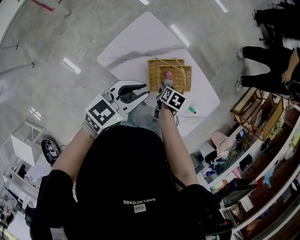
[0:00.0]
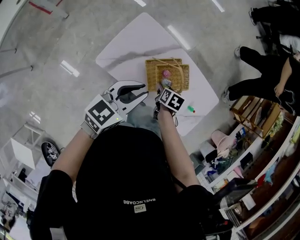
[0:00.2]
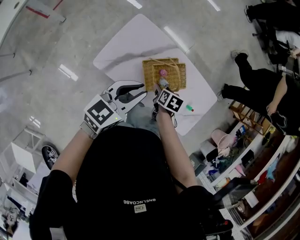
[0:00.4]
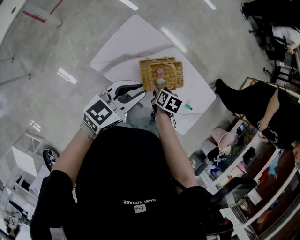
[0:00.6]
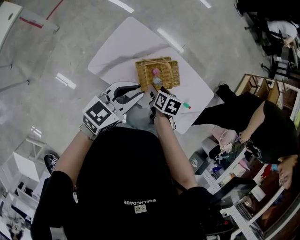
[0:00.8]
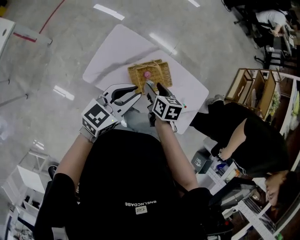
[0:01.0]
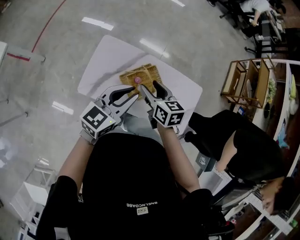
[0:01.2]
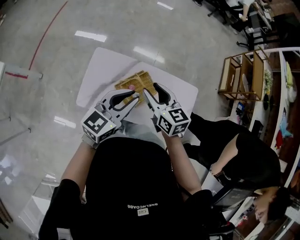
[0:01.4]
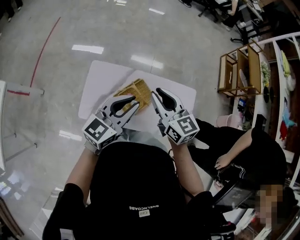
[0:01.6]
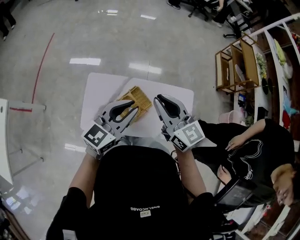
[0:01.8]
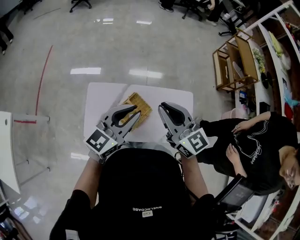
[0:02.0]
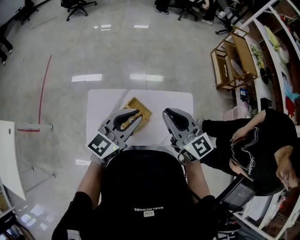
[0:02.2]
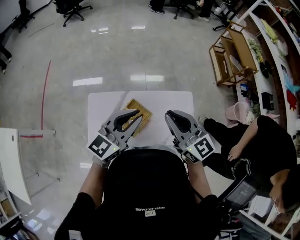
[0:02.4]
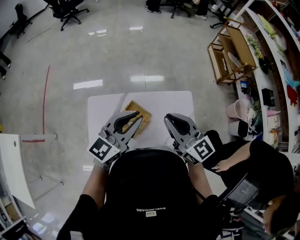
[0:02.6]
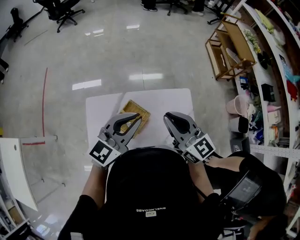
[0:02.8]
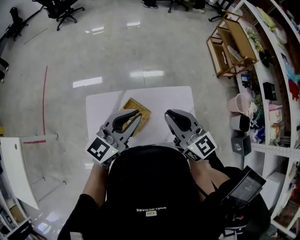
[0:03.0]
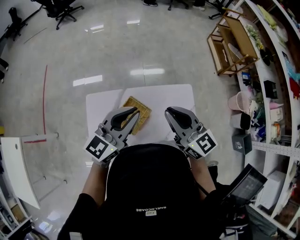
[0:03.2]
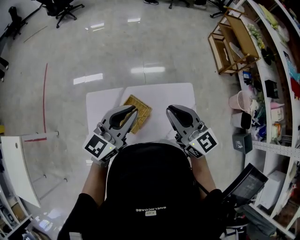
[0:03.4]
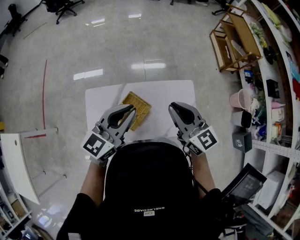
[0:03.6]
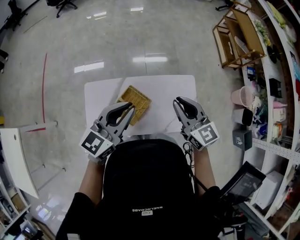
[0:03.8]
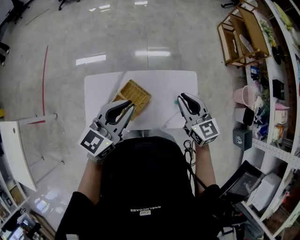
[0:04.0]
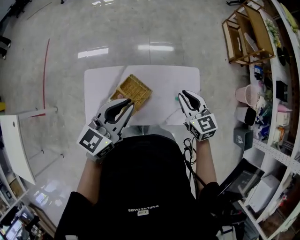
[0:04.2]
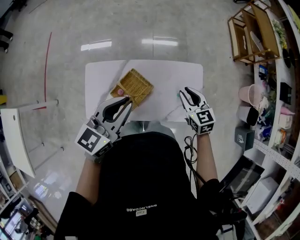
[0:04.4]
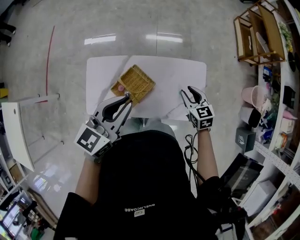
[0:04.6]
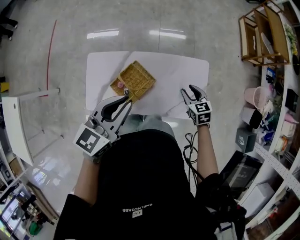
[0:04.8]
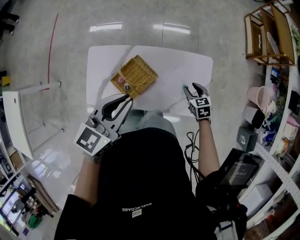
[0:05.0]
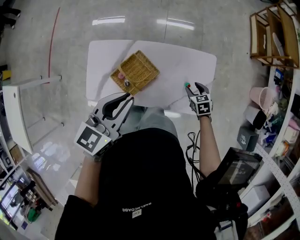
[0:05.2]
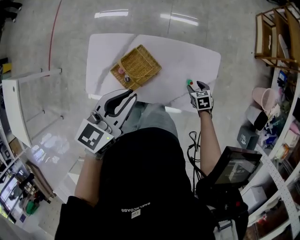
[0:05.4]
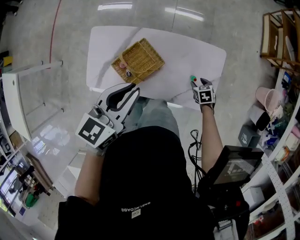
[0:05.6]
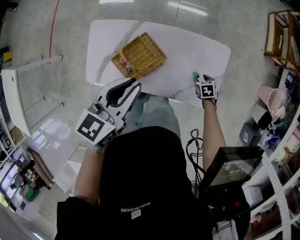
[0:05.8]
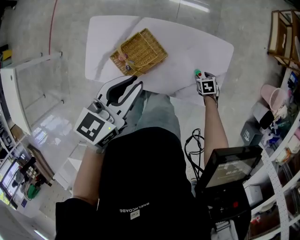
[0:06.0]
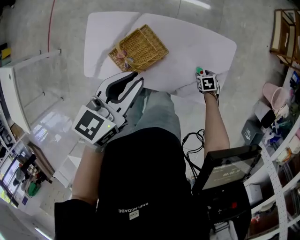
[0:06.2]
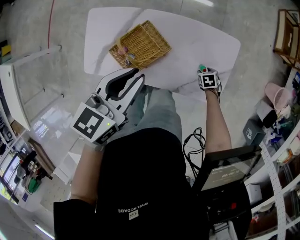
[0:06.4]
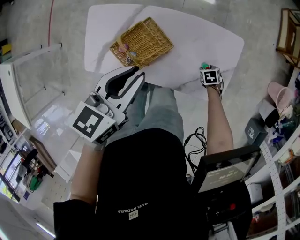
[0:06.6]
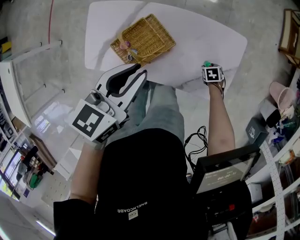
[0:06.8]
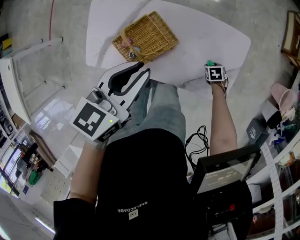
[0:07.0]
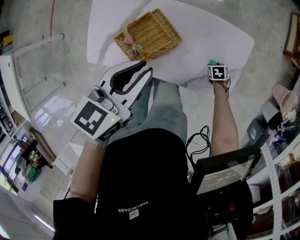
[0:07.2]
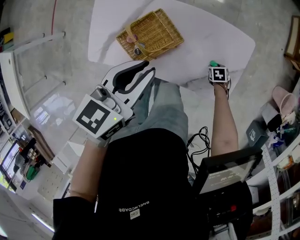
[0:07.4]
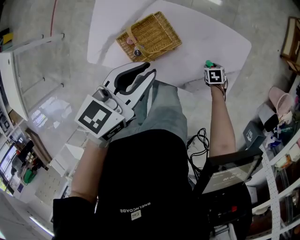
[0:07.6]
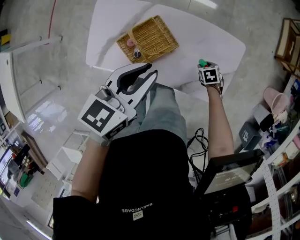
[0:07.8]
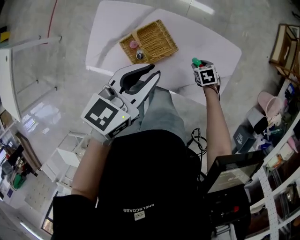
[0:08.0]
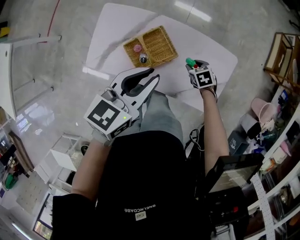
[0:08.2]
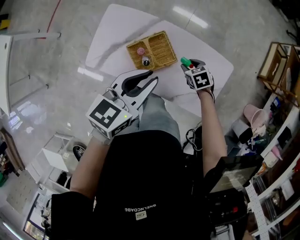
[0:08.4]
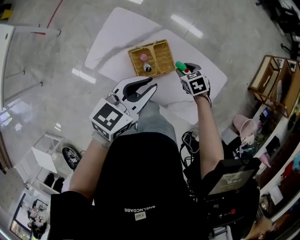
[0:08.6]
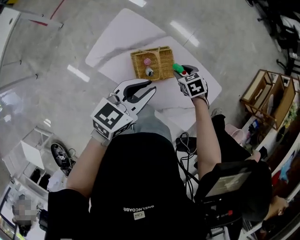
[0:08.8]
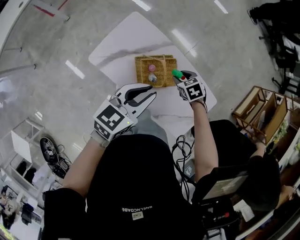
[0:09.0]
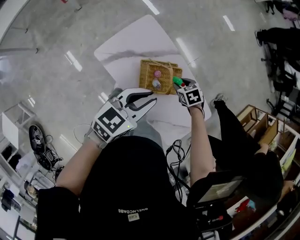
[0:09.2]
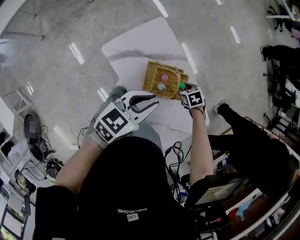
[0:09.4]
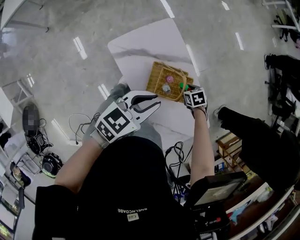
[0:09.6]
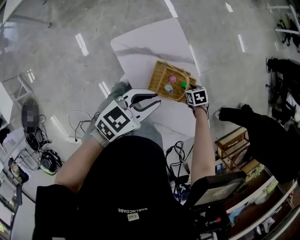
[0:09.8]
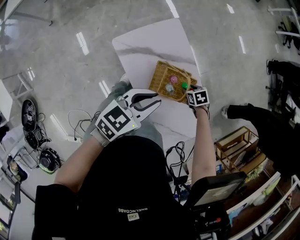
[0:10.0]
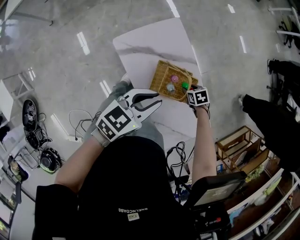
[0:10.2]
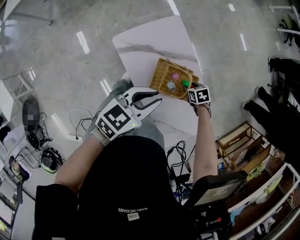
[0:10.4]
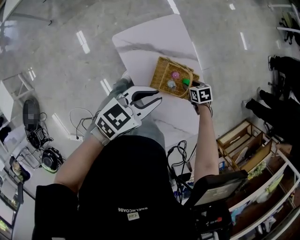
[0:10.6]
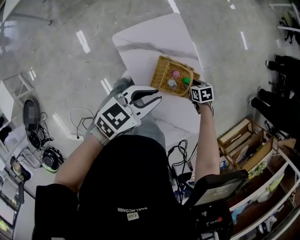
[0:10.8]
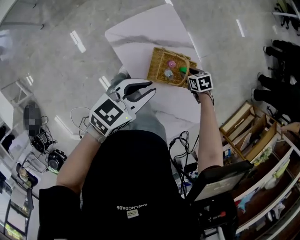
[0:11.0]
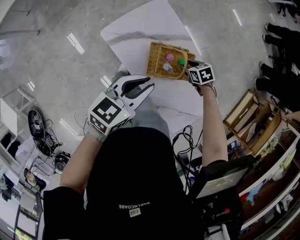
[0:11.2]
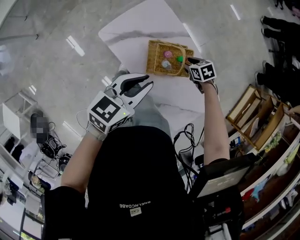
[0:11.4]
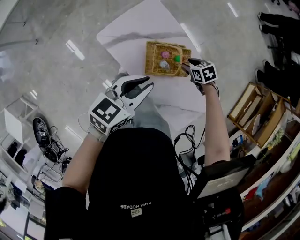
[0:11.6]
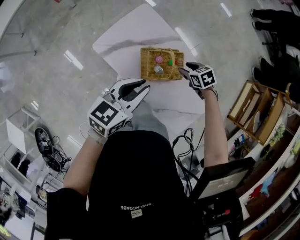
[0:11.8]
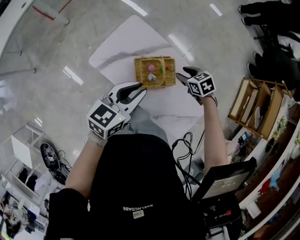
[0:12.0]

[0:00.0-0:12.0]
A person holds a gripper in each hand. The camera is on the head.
0:00.0 to 0:01.6: The left gripper travels upward and to the right by about 20 cm, and swivels approximately 20 degrees, while the right gripper moves upward, some 35 cm, angles its fingers upward, by some 60 degrees, and closes its fingers.
0:01.6 to 0:03.0: The grippers both shift to the right and upward by about 15 cm.
0:03.0 to 0:04.4: The left gripper moves downward, some 5 cm; the right gripper heads downward and to the right, covering roughly 25 cm, and angles its fingers downward, by approximately 30 degrees.
0:04.4 to 0:06.0: The left gripper travels downward by about 10 cm. The right gripper is displaced downward by approximately 40 cm, tips its fingers downward by some 40 degrees, and opens its fingers.
0:07.6 to 0:09.0: The right gripper shifts by roughly 40 cm, and rolls counterclockwise, seen from behind, by some 40 degrees; the left gripper changes place by about 15 cm.
0:09.0 to 0:10.4: The left gripper shifts by about 10 cm; the right gripper goes about 10 cm downward.
0:10.4 to 0:12.0: The right gripper heads upward, covering some 15 cm.

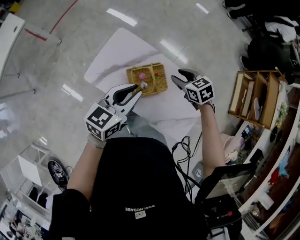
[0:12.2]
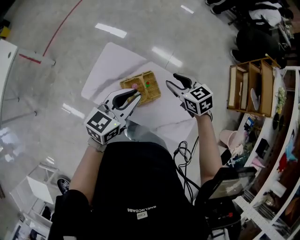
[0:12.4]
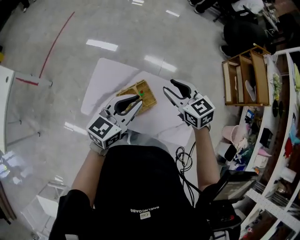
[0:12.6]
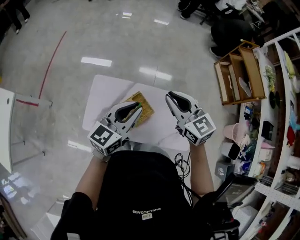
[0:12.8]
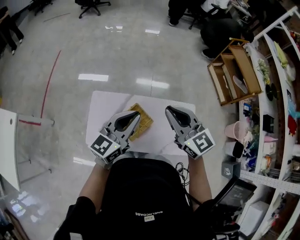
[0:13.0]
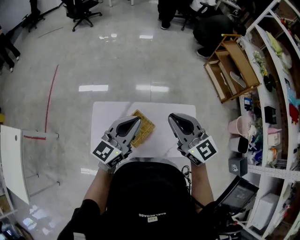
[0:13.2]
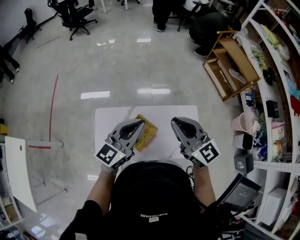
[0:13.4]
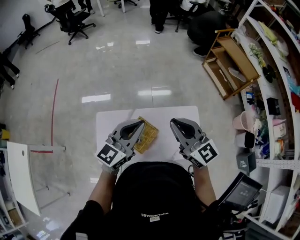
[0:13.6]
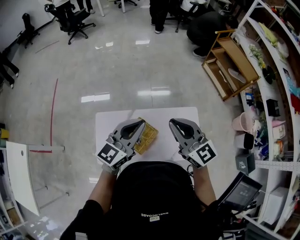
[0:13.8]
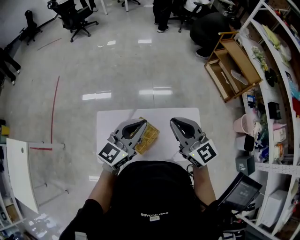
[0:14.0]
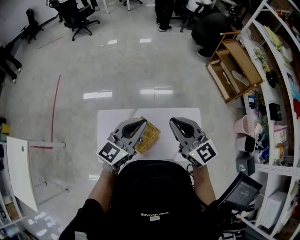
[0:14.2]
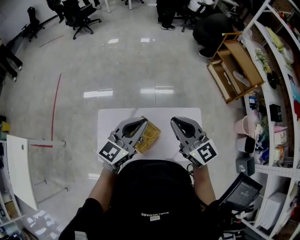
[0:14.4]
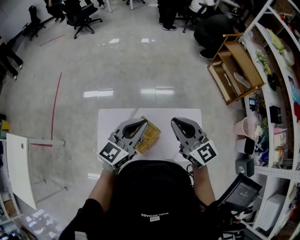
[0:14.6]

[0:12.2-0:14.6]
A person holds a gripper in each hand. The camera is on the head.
0:12.2 to 0:13.4: The right gripper moves upward, about 30 cm, points its fingers some 50 degrees further upward, and closes up, while the left gripper travels upward by approximately 15 cm, and rotates approximately 40 degrees.
0:13.4 to 0:14.6: The grippers stay close to where they were, moving slightly.

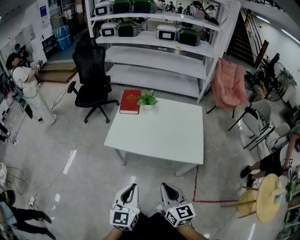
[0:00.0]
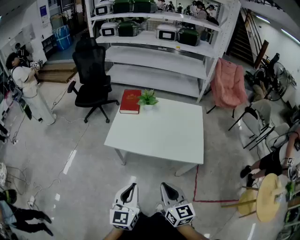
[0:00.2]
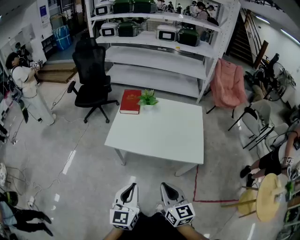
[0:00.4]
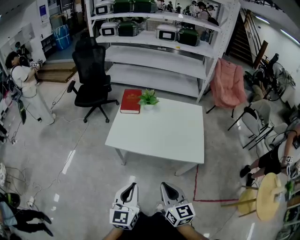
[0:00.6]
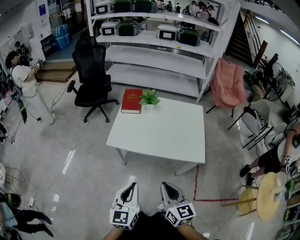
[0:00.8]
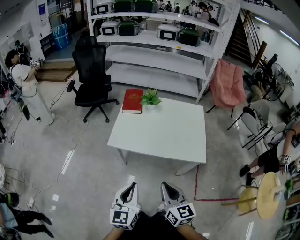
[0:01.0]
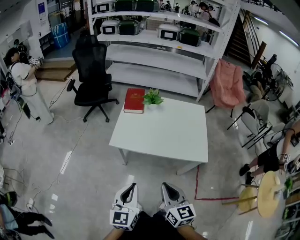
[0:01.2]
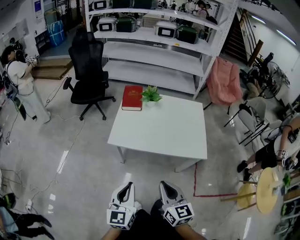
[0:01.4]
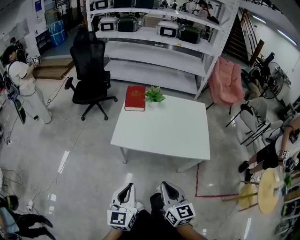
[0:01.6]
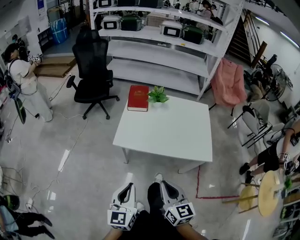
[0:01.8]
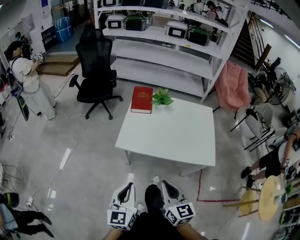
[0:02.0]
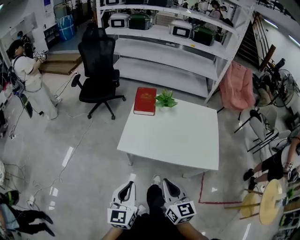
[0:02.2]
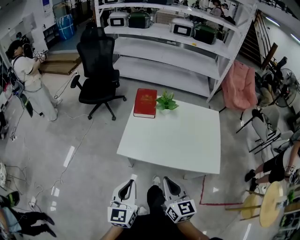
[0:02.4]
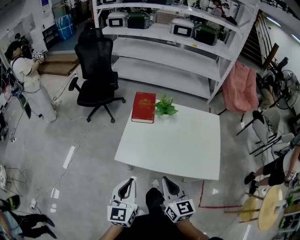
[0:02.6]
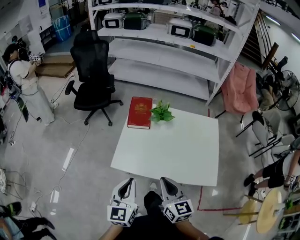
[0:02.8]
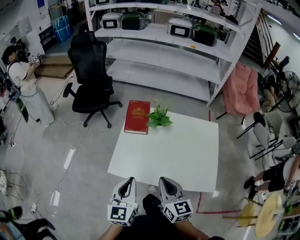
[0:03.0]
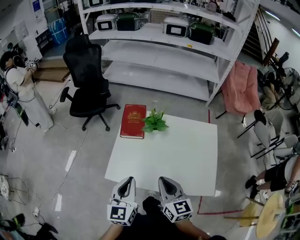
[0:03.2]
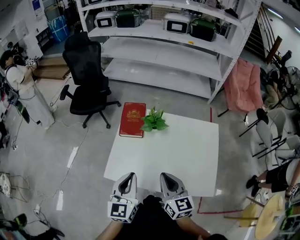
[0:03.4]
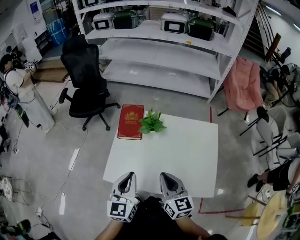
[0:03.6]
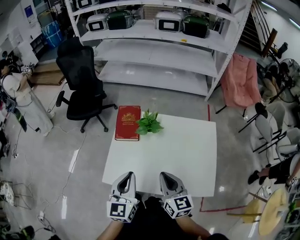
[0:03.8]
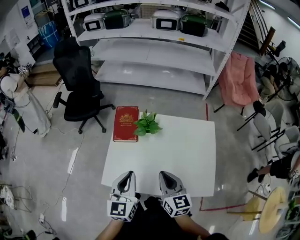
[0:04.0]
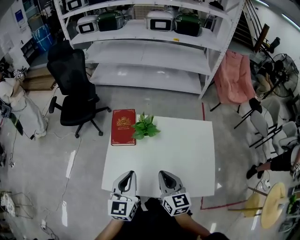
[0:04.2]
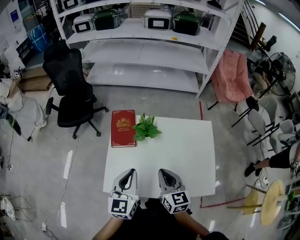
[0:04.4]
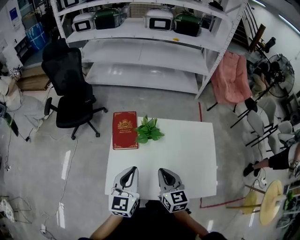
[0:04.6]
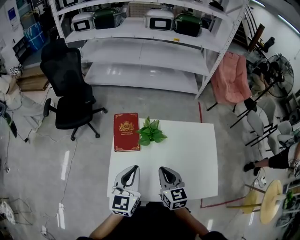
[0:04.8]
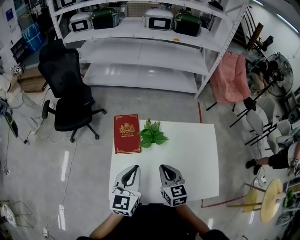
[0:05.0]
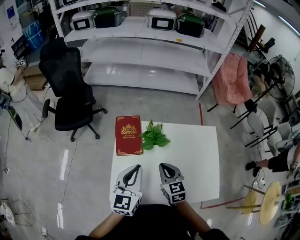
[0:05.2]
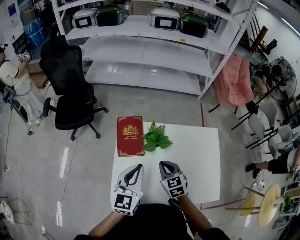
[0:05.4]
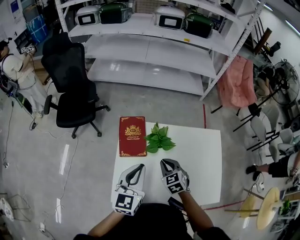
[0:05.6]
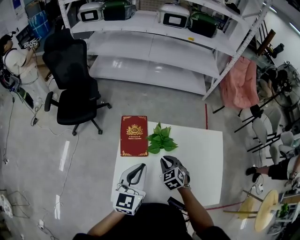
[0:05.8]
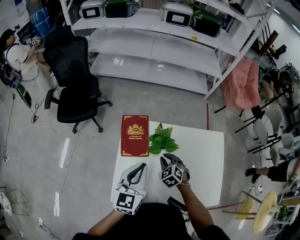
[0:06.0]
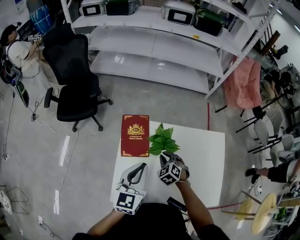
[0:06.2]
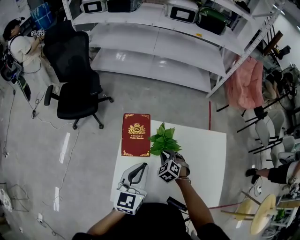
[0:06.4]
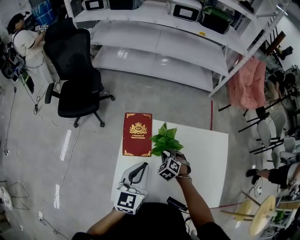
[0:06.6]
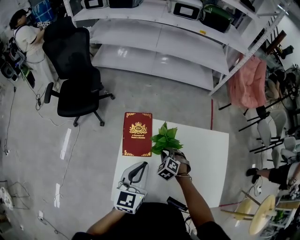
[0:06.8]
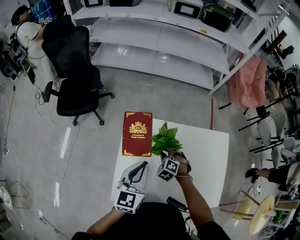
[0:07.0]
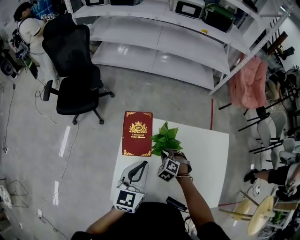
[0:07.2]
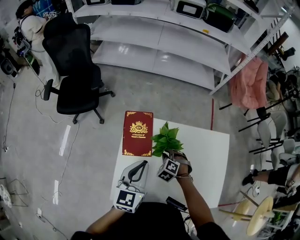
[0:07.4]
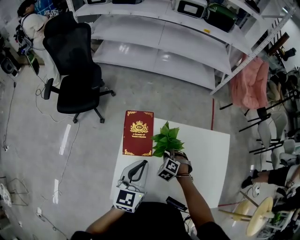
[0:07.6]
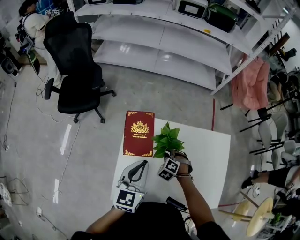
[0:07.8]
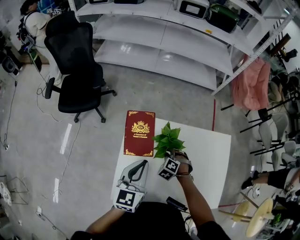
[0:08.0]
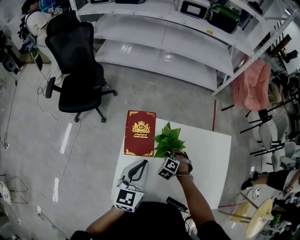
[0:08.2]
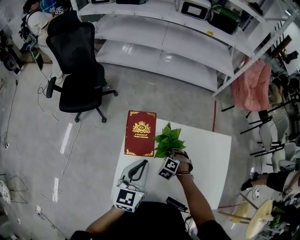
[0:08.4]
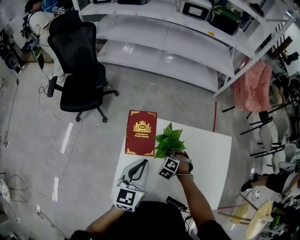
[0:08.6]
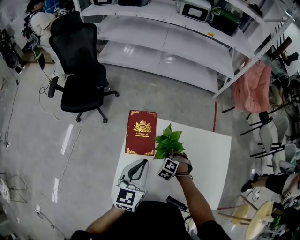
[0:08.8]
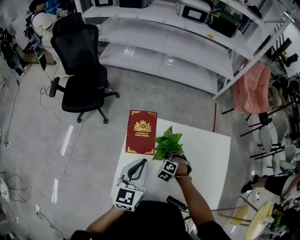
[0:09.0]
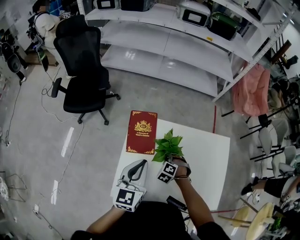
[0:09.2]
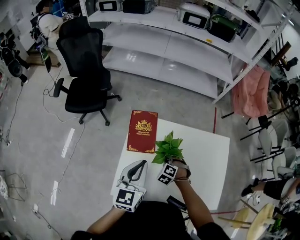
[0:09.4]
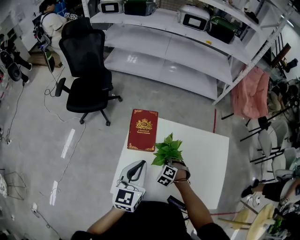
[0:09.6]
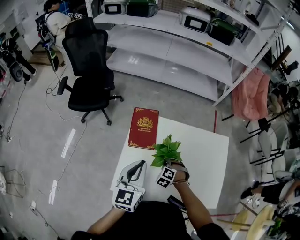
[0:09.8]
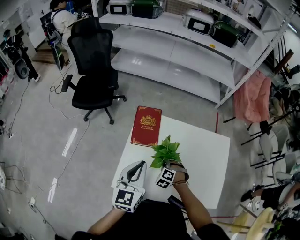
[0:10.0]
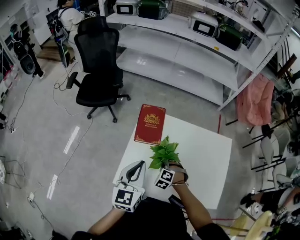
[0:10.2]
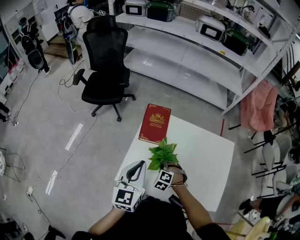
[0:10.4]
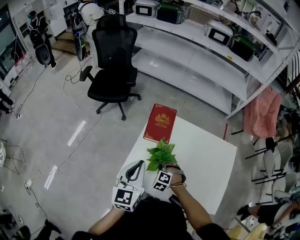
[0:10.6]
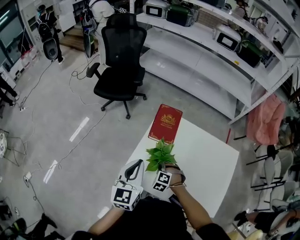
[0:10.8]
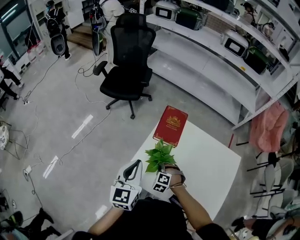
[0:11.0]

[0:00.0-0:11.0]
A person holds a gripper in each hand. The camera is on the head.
0:00.0 to 0:01.6: Both grippers travel together to the left, some 10 cm.
0:01.6 to 0:03.2: Both grippers move forward, about 35 cm.
0:03.2 to 0:04.8: The two grippers go approximately 15 cm forward.
0:04.8 to 0:06.2: The right gripper travels forward and downward by approximately 20 cm, and tips its fingers downward by some 30 degrees; the left gripper moves forward, approximately 10 cm.
0:06.2 to 0:07.8: The right gripper is displaced downward by approximately 5 cm, and rotates some 20 degrees.
0:07.8 to 0:09.4: Both grippers move backward, about 5 cm.
0:09.4 to 0:11.0: The right gripper shifts by about 20 cm, and swivels approximately 30 degrees. The left gripper shifts by about 20 cm, and changes its angle by about 20 degrees.
